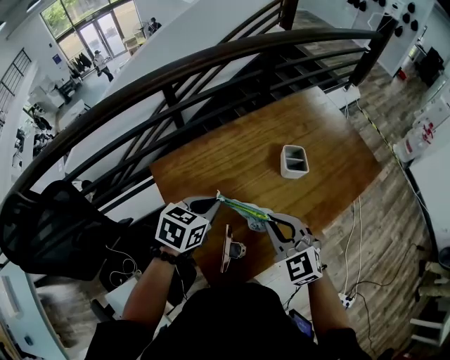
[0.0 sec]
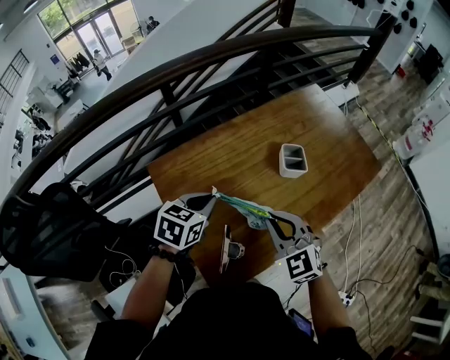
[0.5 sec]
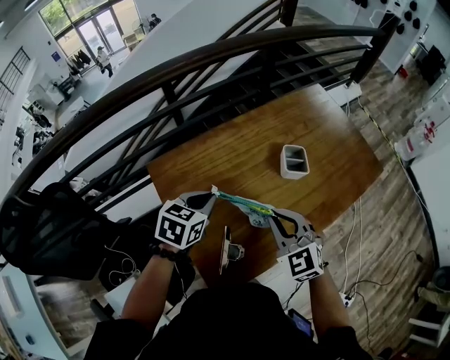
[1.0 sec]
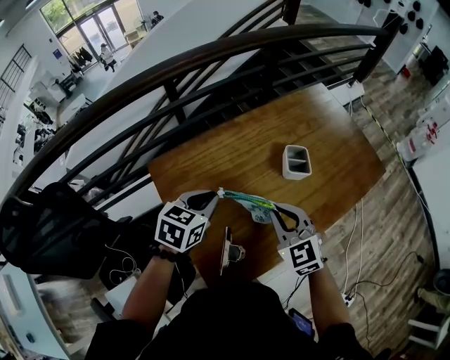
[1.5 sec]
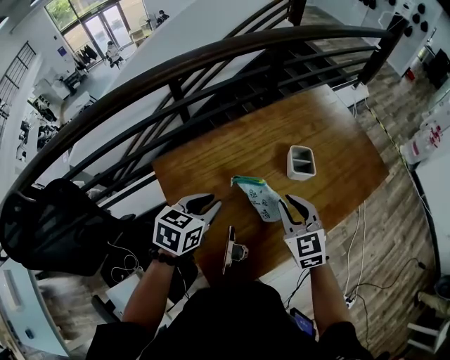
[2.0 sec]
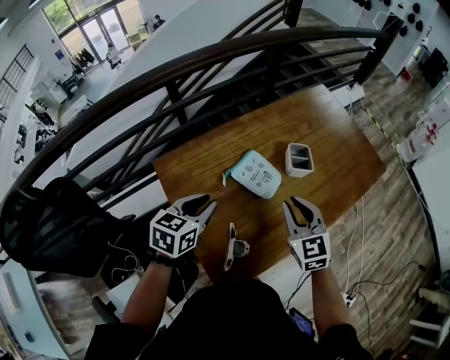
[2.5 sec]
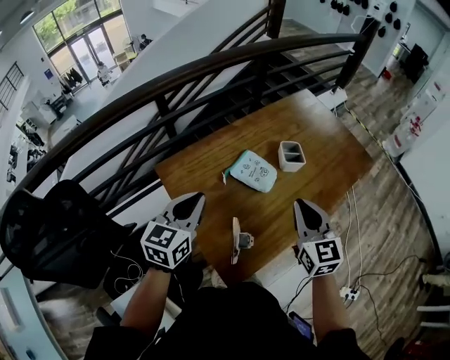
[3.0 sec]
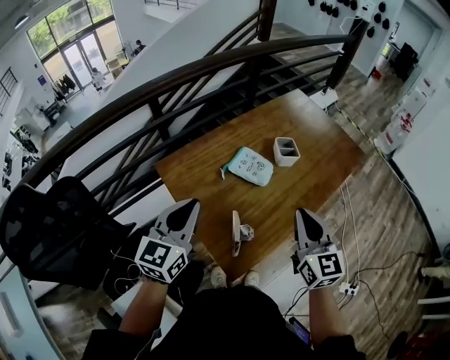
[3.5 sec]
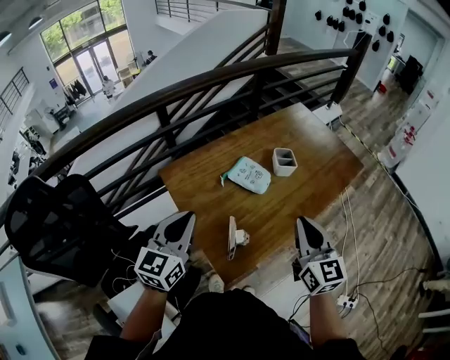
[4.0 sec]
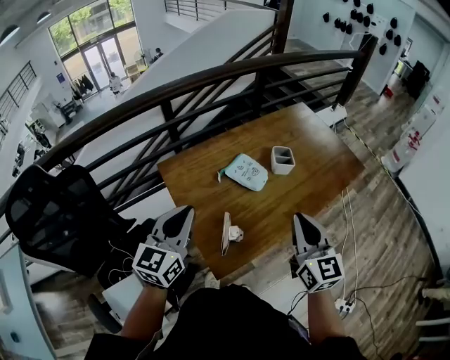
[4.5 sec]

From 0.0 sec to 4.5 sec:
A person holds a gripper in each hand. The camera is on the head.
From 0.0 sec to 2.0 sec: The right gripper moves forward, about 5 cm.
From 2.0 sec to 4.5 sec: The grippers both shift backward and upward by about 20 cm. The right gripper rotates some 30 degrees, while the left gripper tips its fingers upward by roughly 30 degrees.

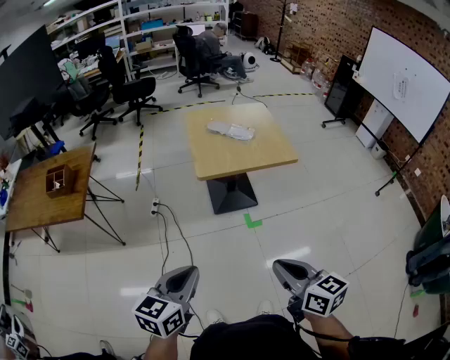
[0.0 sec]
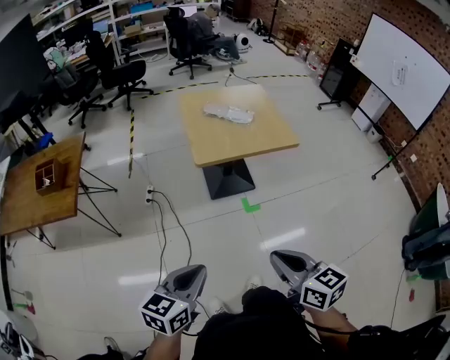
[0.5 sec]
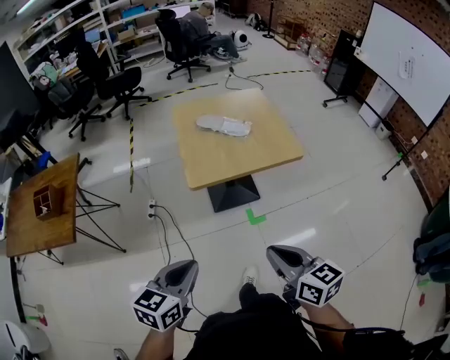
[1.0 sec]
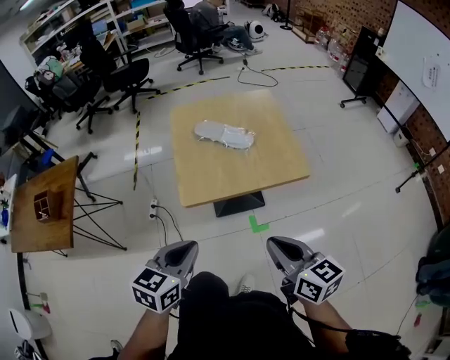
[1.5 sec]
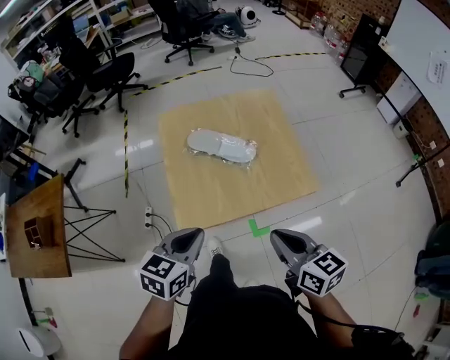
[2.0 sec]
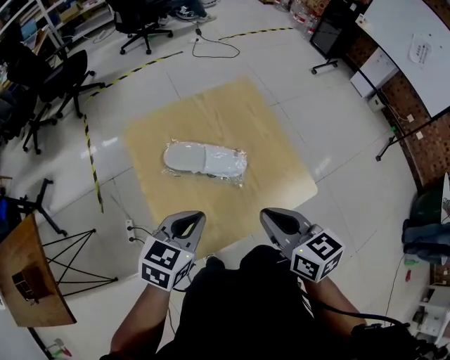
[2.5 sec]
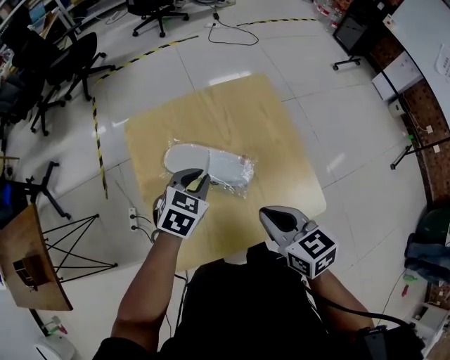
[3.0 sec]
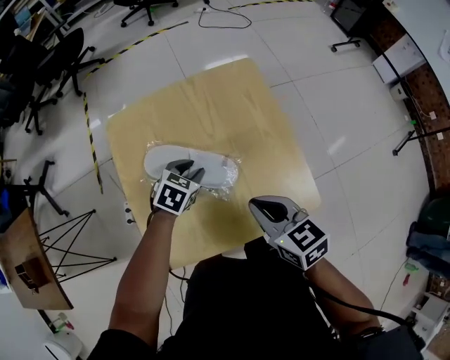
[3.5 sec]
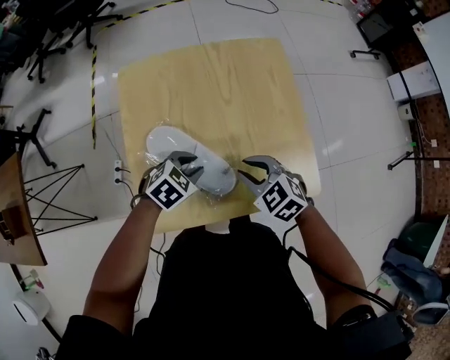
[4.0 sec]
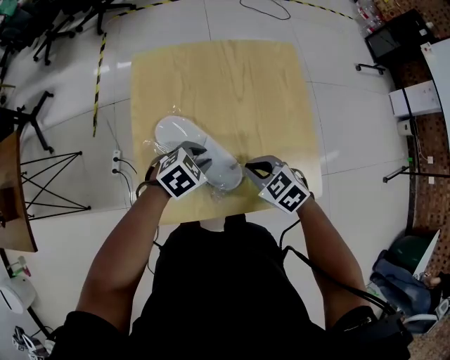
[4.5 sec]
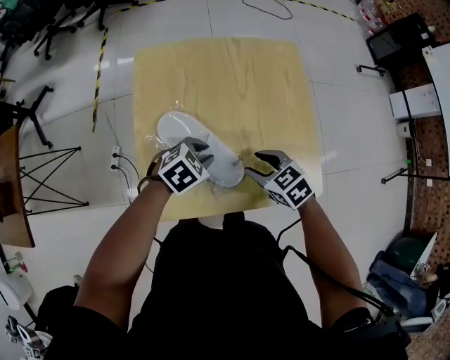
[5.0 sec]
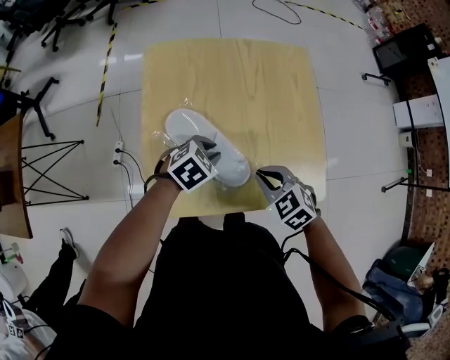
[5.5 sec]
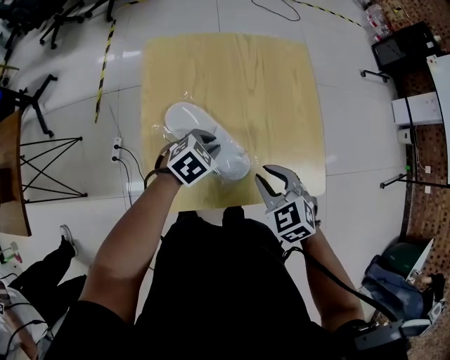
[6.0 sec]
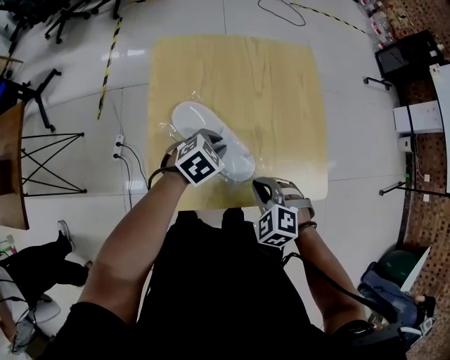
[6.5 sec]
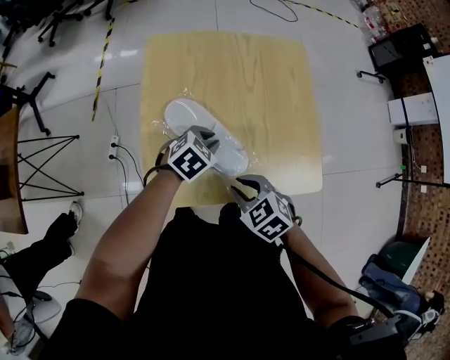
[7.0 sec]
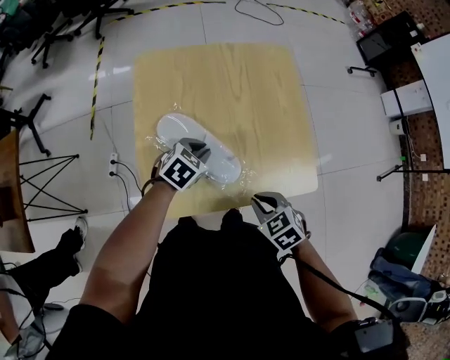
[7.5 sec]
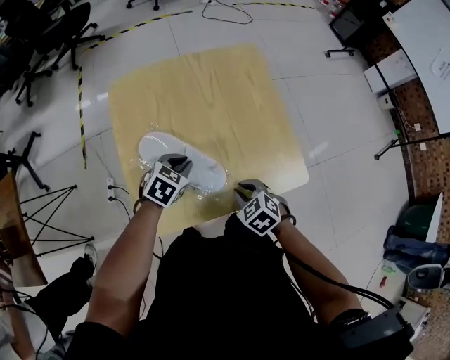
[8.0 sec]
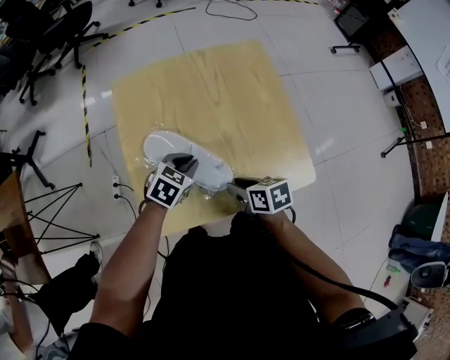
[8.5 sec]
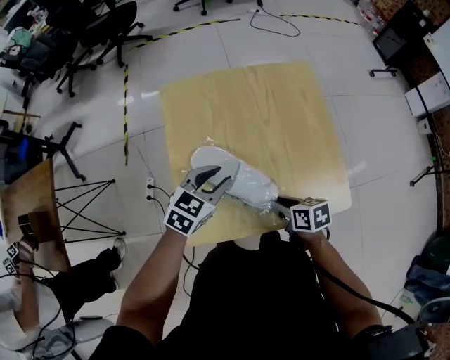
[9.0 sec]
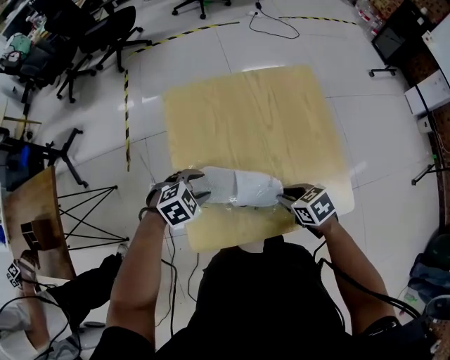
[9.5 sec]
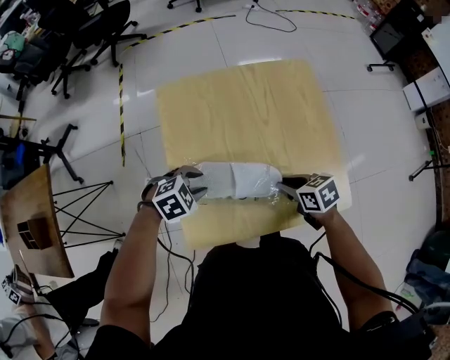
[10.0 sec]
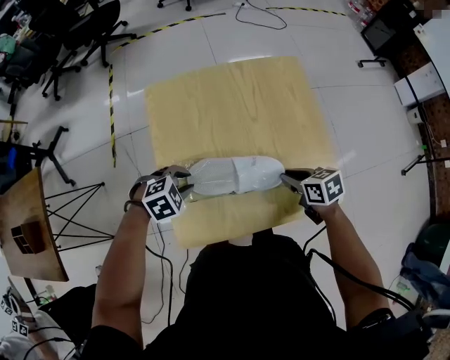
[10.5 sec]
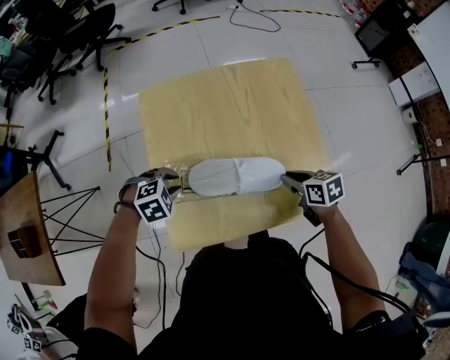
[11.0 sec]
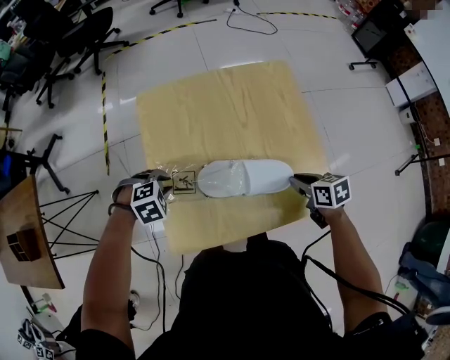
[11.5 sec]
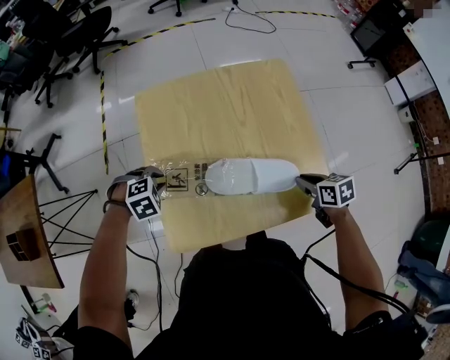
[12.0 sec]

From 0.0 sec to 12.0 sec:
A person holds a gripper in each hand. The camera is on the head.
From 0.0 sec to 2.0 sec: The two grippers travel together, forward, roughly 40 cm.
From 2.0 sec to 4.0 sec: The right gripper goes approximately 30 cm forward and downward, swivels some 50 degrees, and opens its fingers. Meanwhile the left gripper moves downward and forward, about 30 cm, turns by roughly 40 degrees, and opens.
From 4.0 sec to 6.0 sec: The right gripper changes place by roughly 5 cm, and opens, then closes again.
From 6.0 sec to 8.0 sec: The right gripper is displaced downward by approximately 10 cm.
From 8.0 sec to 10.0 sec: The right gripper shifts by approximately 10 cm, and changes its angle by some 30 degrees. Meanwhile the left gripper reaches roughly 10 cm upward, then returns, changes its angle by some 30 degrees, and opens its fingers.
From 10.0 sec to 12.0 sec: The left gripper ends up some 5 cm from where it was. Meanwhile the right gripper shifts by some 15 cm.

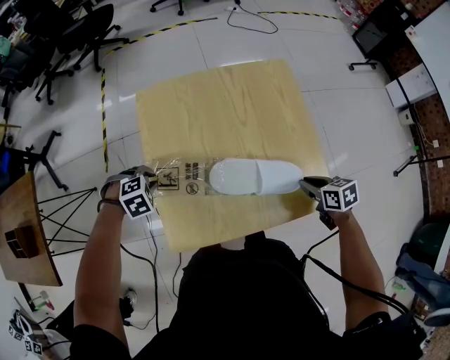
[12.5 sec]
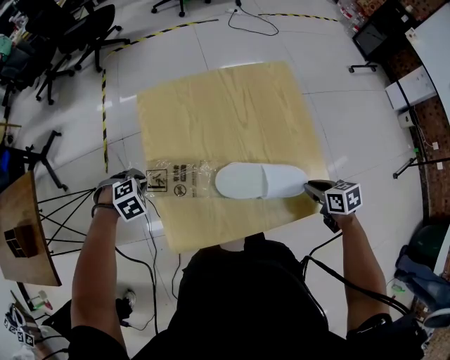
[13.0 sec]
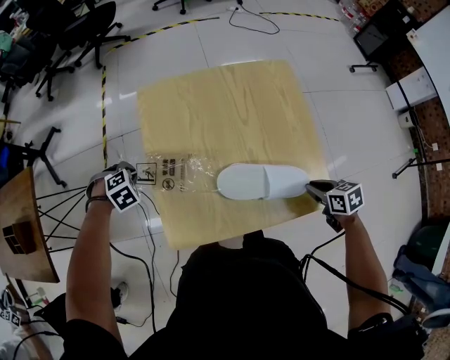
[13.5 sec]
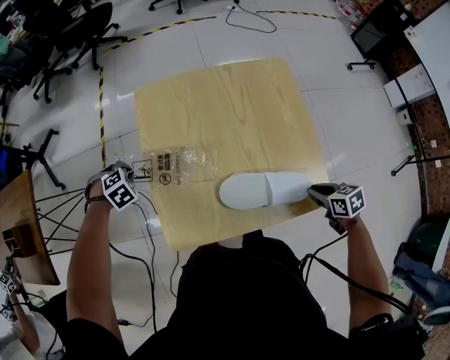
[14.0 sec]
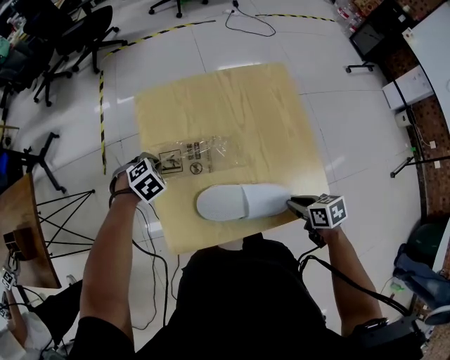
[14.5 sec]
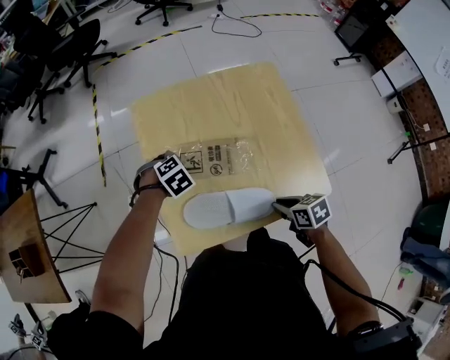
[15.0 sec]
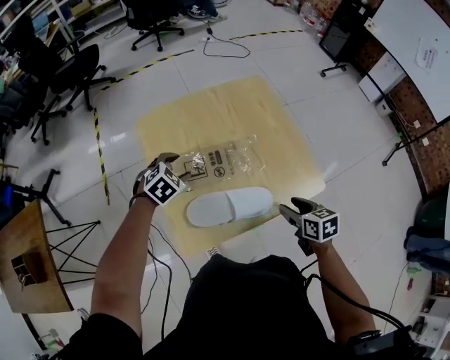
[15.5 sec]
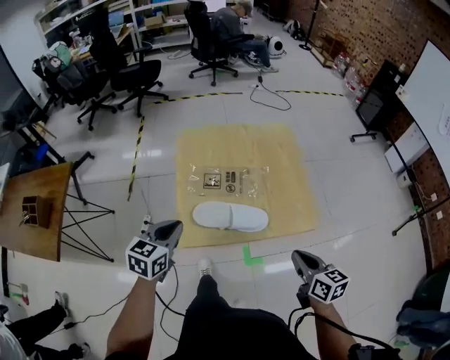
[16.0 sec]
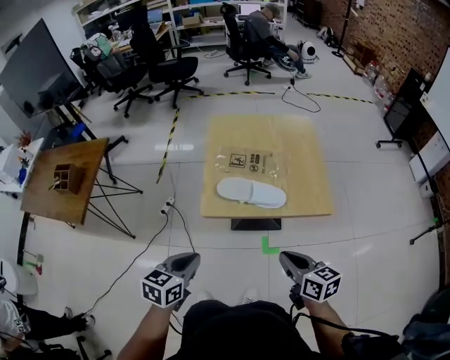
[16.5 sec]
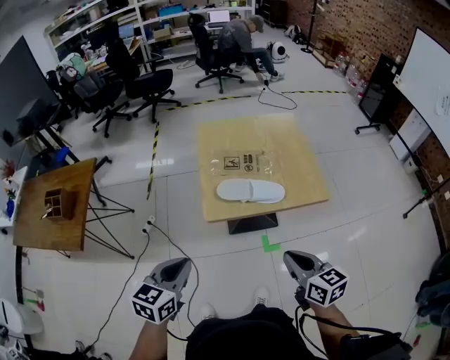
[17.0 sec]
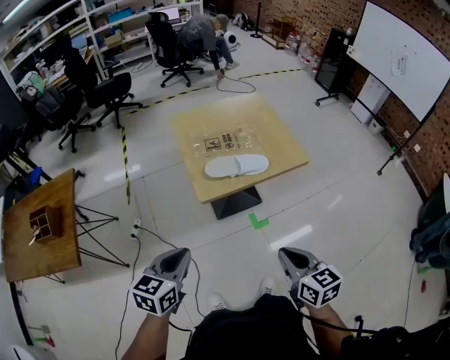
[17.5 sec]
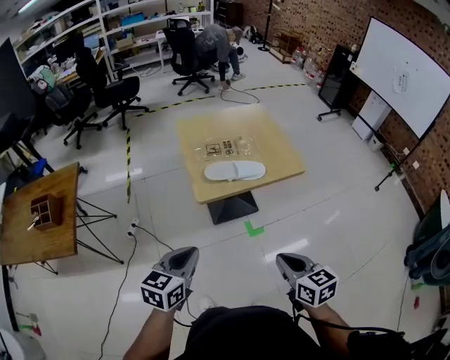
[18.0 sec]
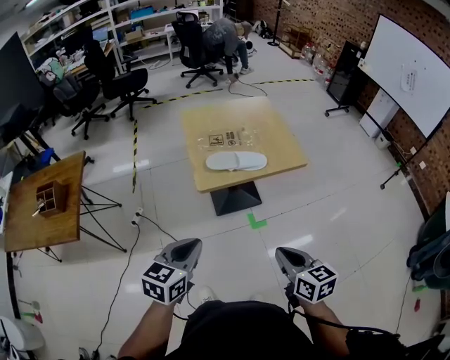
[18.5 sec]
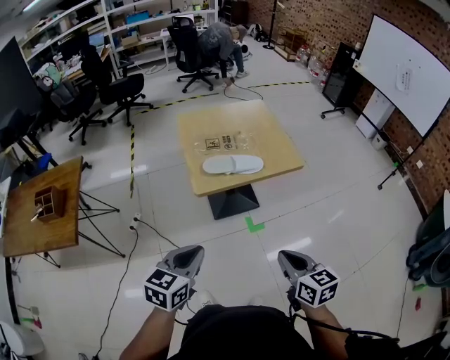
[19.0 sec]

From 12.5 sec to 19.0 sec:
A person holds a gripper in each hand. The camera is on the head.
From 12.5 sec to 14.5 sec: The right gripper ends up approximately 5 cm from where it was. Meanwhile the left gripper shifts by approximately 5 cm.
From 14.5 sec to 17.0 sec: The right gripper moves some 35 cm, angles its fingers upward, by approximately 30 degrees, and opens, then closes once more. Meanwhile the left gripper moves some 50 cm, tilts its fingers some 50 degrees upward, and opens and closes again.
From 17.0 sec to 19.0 sec: The right gripper shifts approximately 15 cm backward. The left gripper moves backward, approximately 10 cm.

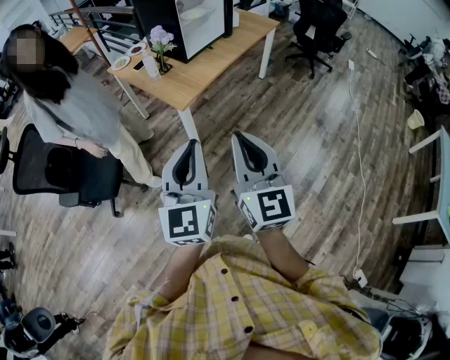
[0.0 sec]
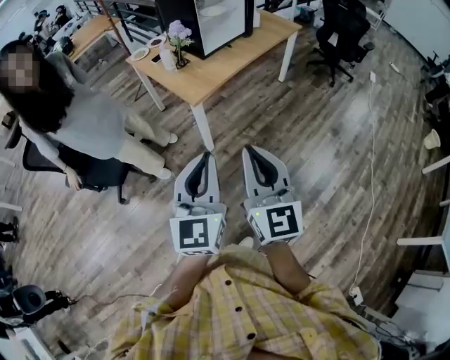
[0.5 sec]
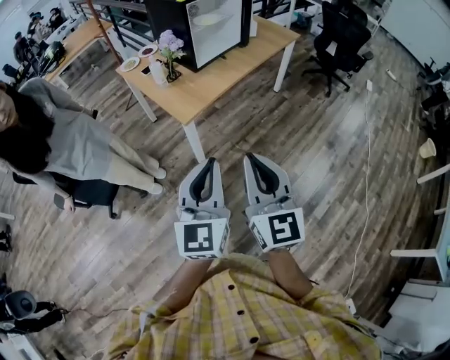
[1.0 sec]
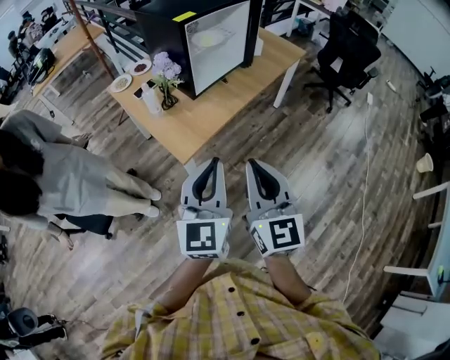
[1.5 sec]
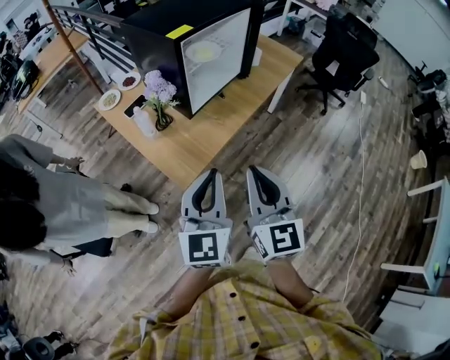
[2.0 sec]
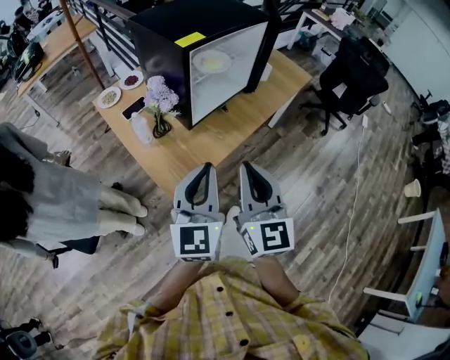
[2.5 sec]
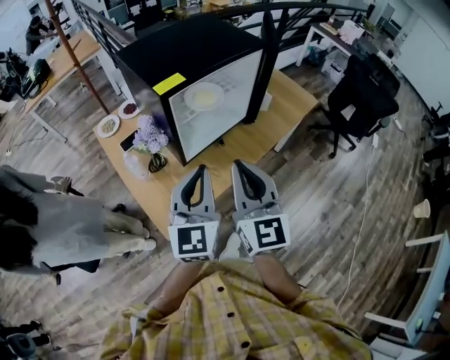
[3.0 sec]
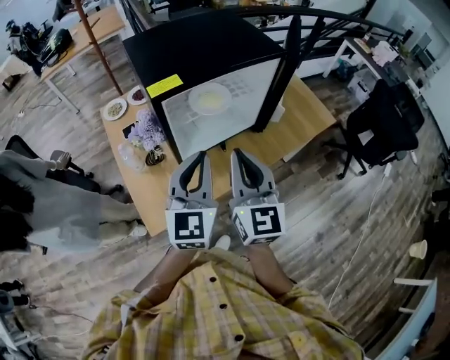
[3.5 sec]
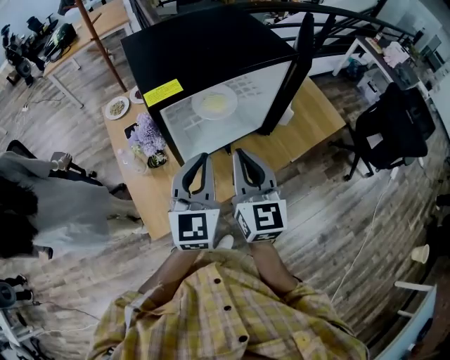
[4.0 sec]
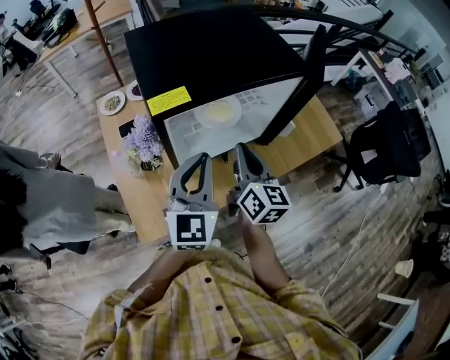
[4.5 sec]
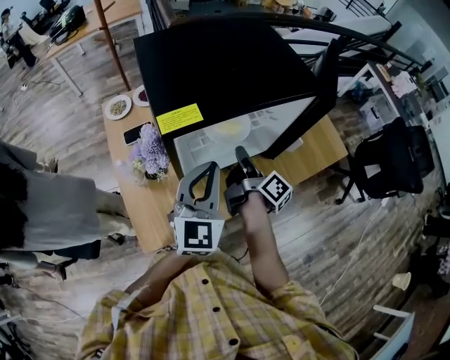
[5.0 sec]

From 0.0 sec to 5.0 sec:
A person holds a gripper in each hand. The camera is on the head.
From 0.0 sec to 2.5 sec: The two grippers travel together, forward, roughly 40 cm.
From 2.5 sec to 5.0 sec: Both grippers move forward, about 35 cm. The right gripper twists approximately 80 degrees clockwise, seen from behind, and opens its fingers.
